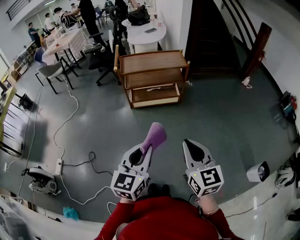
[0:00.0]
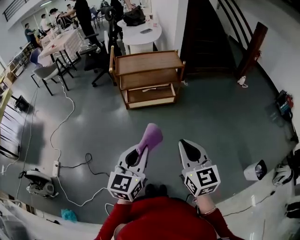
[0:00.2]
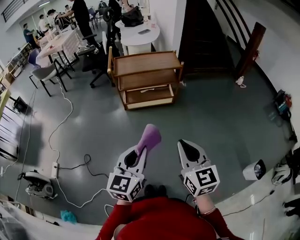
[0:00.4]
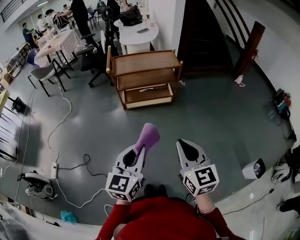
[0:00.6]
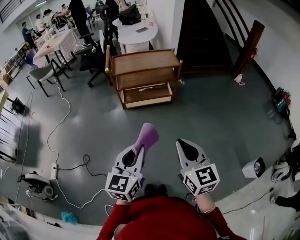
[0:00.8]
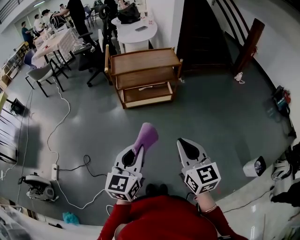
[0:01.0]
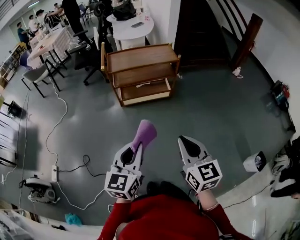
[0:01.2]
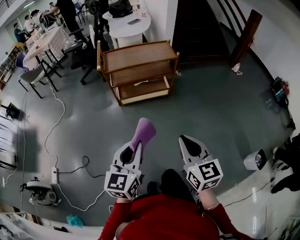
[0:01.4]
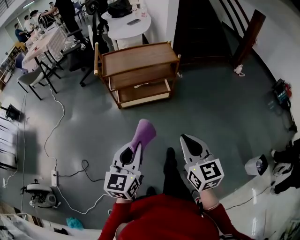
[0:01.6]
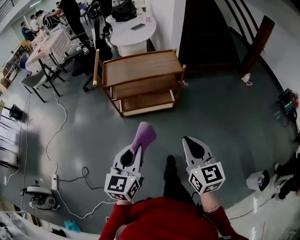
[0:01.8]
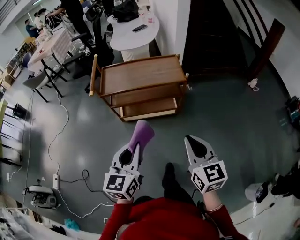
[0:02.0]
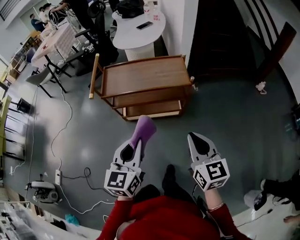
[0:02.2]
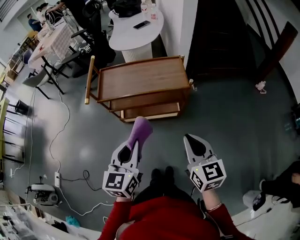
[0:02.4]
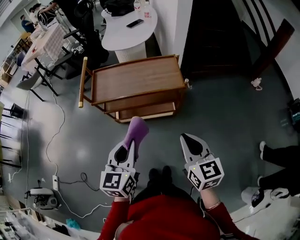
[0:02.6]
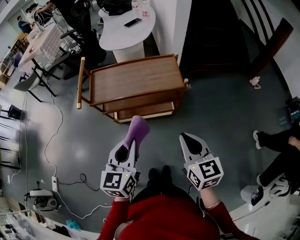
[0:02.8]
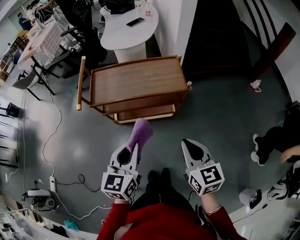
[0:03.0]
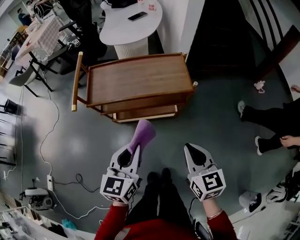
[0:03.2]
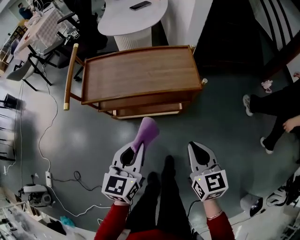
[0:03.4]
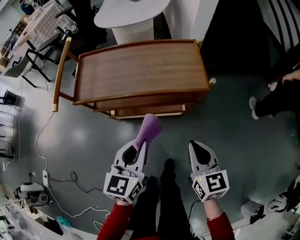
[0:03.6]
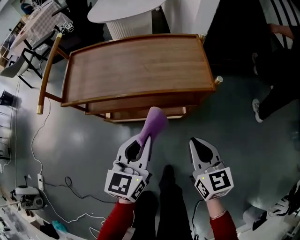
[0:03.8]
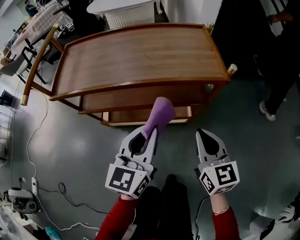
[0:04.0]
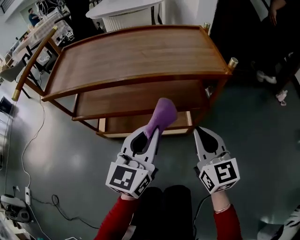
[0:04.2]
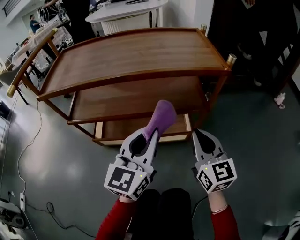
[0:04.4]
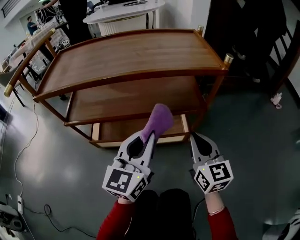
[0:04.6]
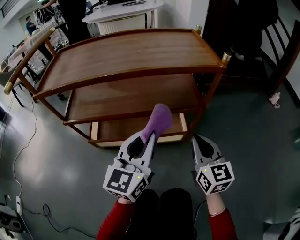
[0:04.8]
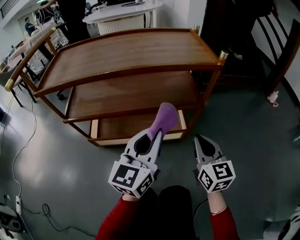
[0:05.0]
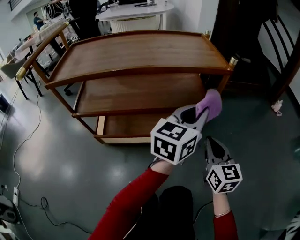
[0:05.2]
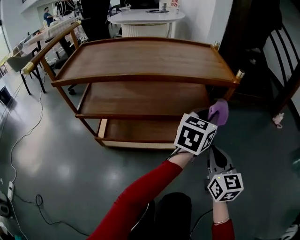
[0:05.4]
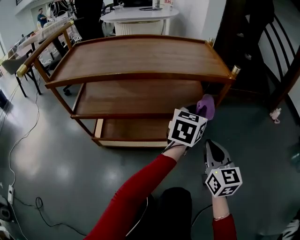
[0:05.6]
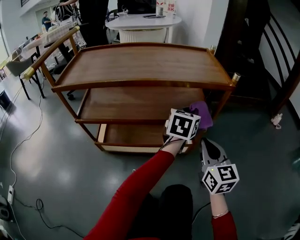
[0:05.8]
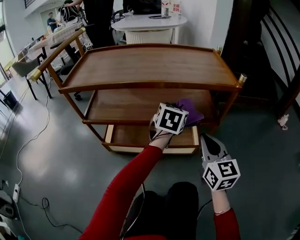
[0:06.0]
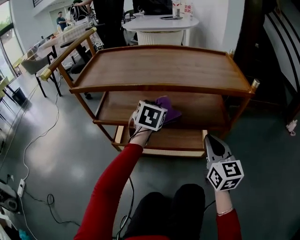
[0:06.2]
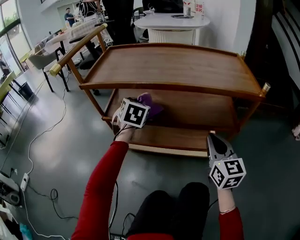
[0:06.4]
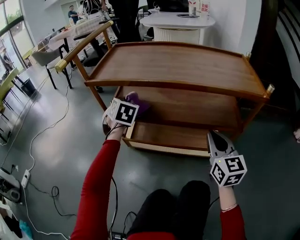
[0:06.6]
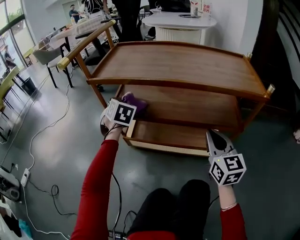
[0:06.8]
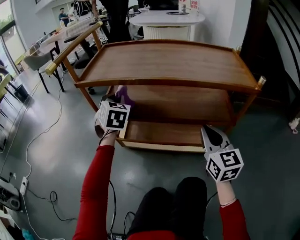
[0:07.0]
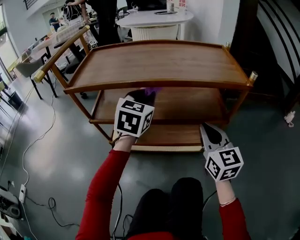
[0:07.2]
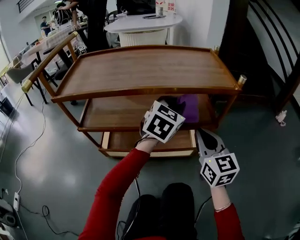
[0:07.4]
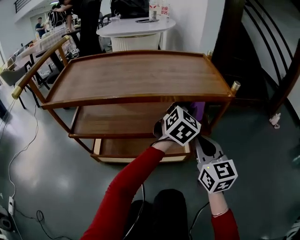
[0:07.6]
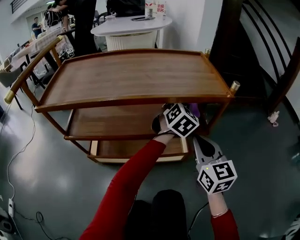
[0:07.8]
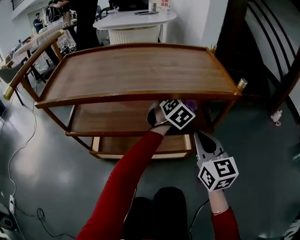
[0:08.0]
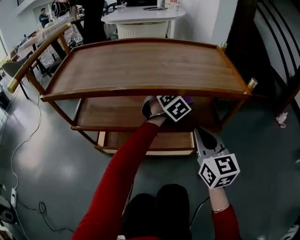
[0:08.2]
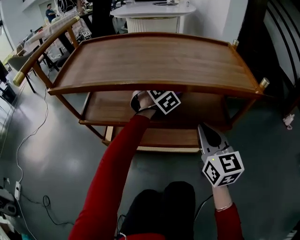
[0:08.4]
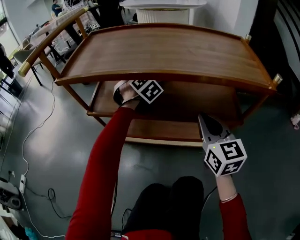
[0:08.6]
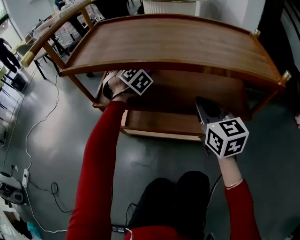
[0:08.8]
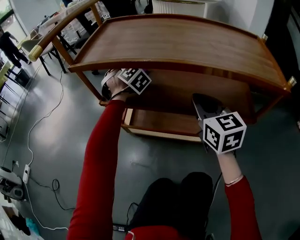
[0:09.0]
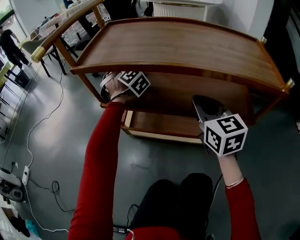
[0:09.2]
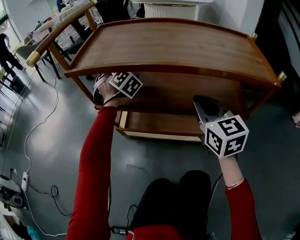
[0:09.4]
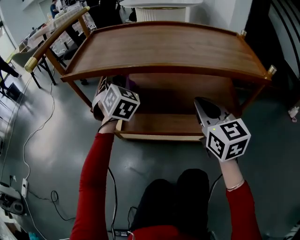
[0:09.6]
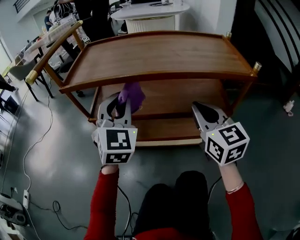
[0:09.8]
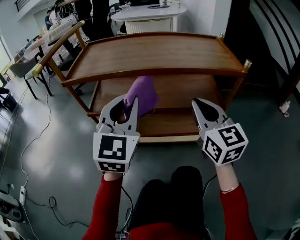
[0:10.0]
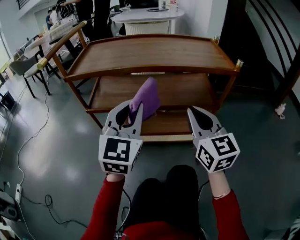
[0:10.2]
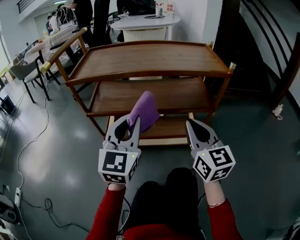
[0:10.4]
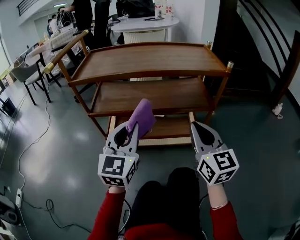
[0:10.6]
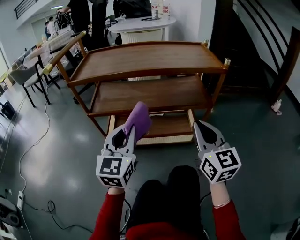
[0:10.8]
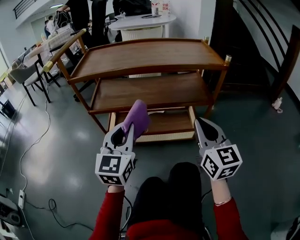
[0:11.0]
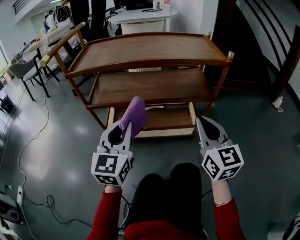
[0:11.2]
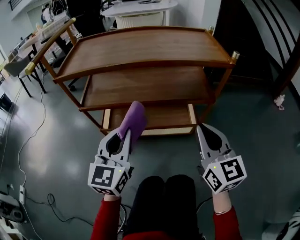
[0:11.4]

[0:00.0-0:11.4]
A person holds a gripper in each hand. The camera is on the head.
0:00.0 to 0:01.4: The left gripper travels forward by about 5 cm; the right gripper moves roughly 5 cm.
0:01.4 to 0:02.8: The grippers both shift forward by about 30 cm.
0:02.8 to 0:04.2: Both grippers move downward and forward, some 35 cm.
0:04.2 to 0:05.6: The left gripper moves forward and to the right, about 20 cm; the right gripper travels downward by roughly 5 cm.
0:05.6 to 0:07.2: The right gripper moves roughly 10 cm. The left gripper swivels approximately 30 degrees.
0:07.2 to 0:08.6: The left gripper moves roughly 20 cm, and turns by roughly 50 degrees, while the right gripper moves roughly 5 cm.
0:08.6 to 0:10.0: The left gripper changes place by some 30 cm, and tips its fingers upward by roughly 30 degrees, while the right gripper travels upward by roughly 10 cm.
0:10.0 to 0:11.4: The left gripper shifts roughly 10 cm downward and backward; the right gripper moves backward and to the right, roughly 10 cm.

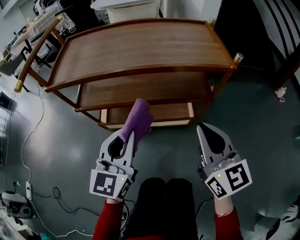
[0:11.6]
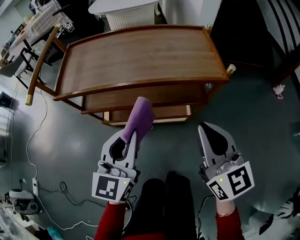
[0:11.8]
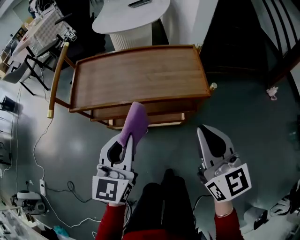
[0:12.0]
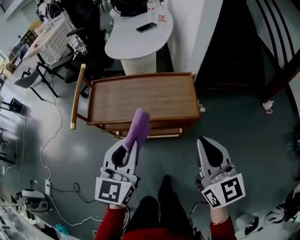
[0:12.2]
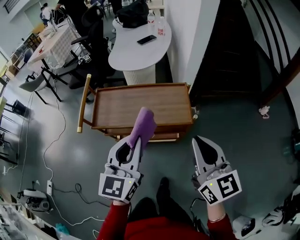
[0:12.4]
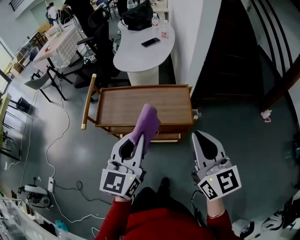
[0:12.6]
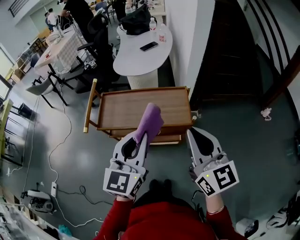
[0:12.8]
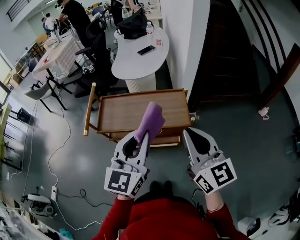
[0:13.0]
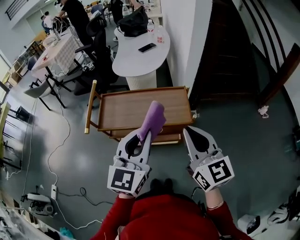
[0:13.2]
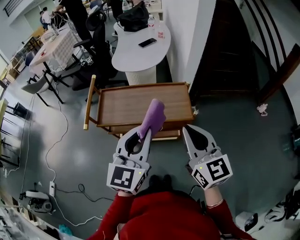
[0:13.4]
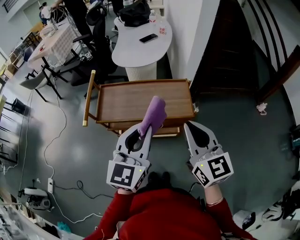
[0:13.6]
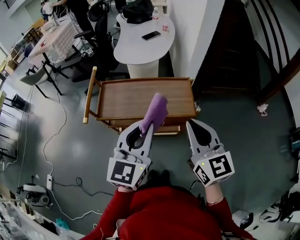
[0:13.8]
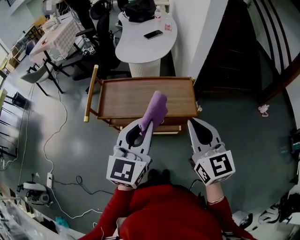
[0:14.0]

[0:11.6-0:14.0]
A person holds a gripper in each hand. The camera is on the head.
0:11.6 to 0:12.8: The two grippers go about 35 cm upward.
0:12.8 to 0:14.0: The grippers move only a little.

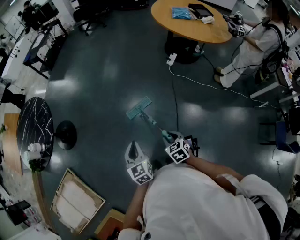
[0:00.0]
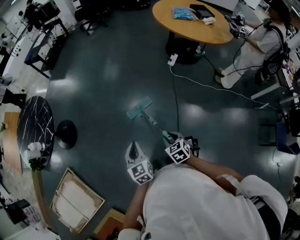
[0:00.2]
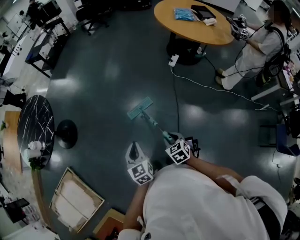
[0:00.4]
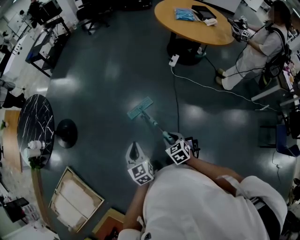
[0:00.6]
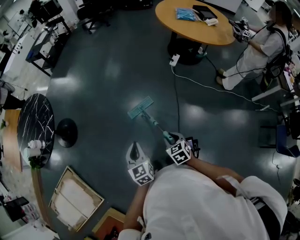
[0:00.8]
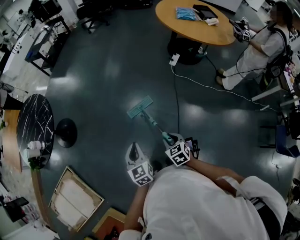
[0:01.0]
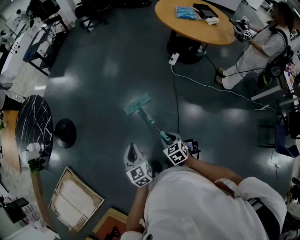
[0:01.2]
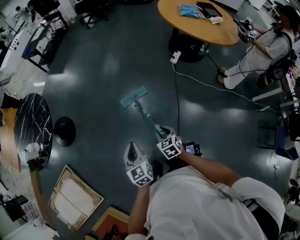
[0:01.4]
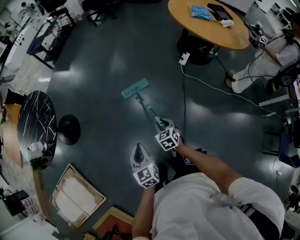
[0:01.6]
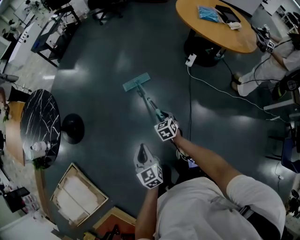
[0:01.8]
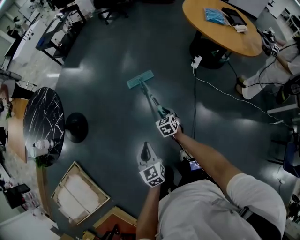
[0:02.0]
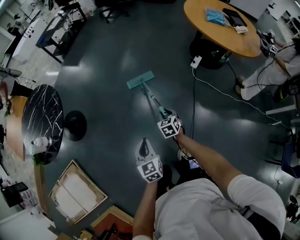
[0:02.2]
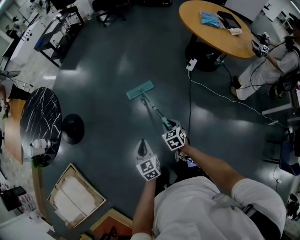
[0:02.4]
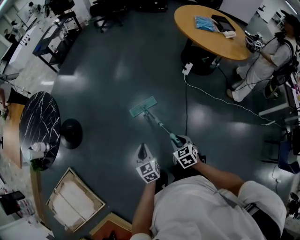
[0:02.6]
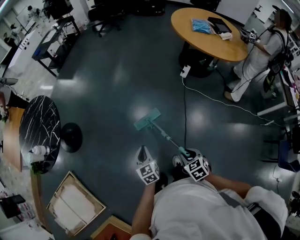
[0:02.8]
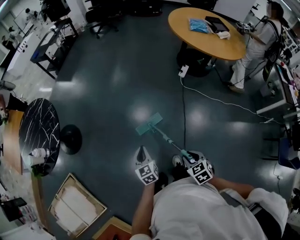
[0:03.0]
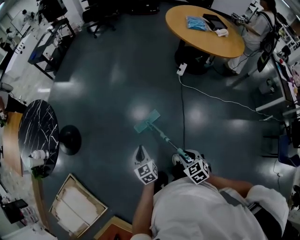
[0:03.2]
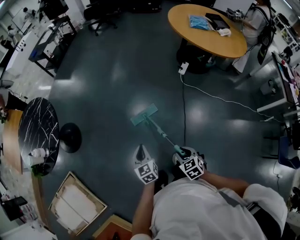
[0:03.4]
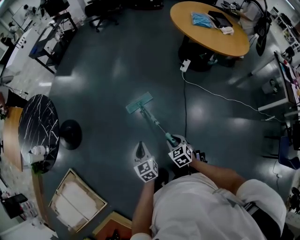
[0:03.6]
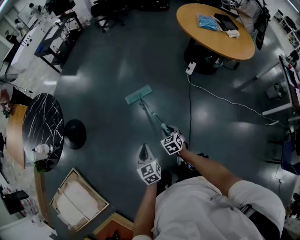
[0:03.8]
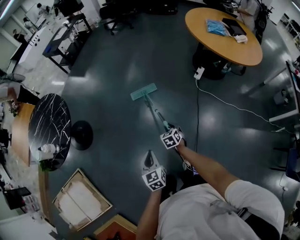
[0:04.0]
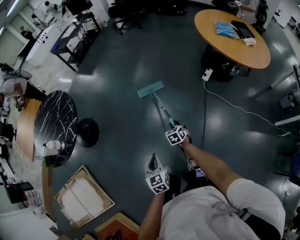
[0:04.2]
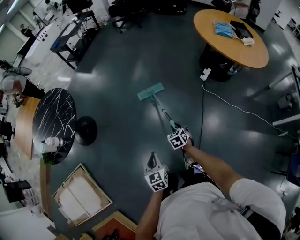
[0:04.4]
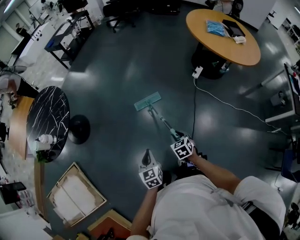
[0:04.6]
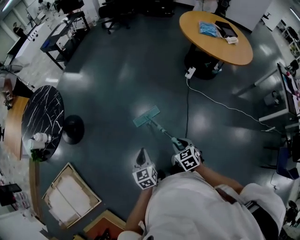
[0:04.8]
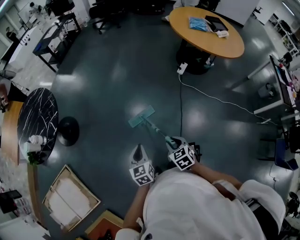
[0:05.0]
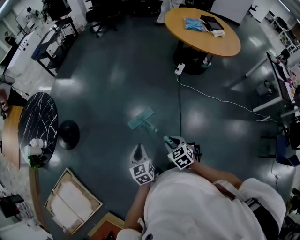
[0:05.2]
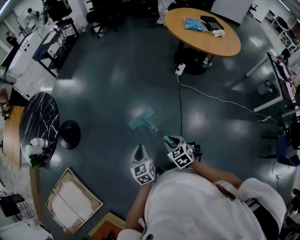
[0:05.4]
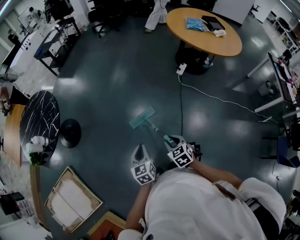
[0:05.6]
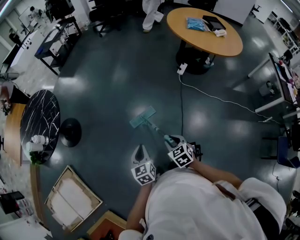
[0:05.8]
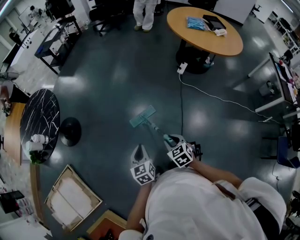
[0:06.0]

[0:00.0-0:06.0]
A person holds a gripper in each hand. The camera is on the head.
0:00.0 to 0:01.6: The right gripper goes approximately 15 cm forward. The left gripper moves forward, approximately 5 cm.
0:01.6 to 0:03.0: The right gripper moves backward and upward, some 20 cm; the left gripper changes place by approximately 5 cm.
0:03.0 to 0:04.4: The right gripper travels forward and downward by approximately 25 cm.
0:04.4 to 0:06.0: The right gripper travels backward and upward by some 25 cm, while the left gripper is displaced backward by about 5 cm.

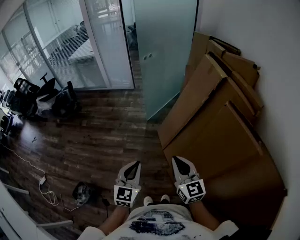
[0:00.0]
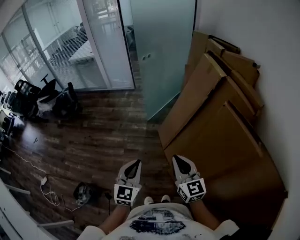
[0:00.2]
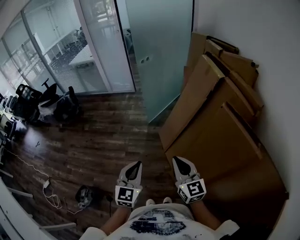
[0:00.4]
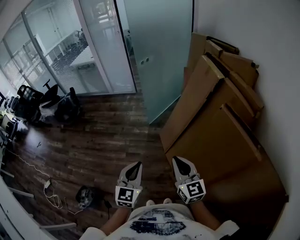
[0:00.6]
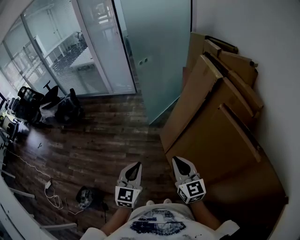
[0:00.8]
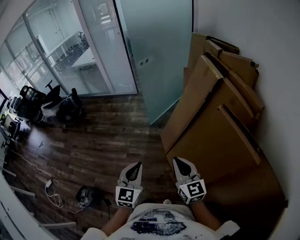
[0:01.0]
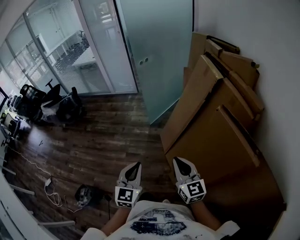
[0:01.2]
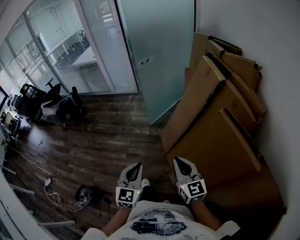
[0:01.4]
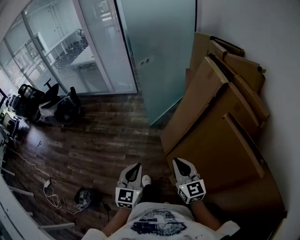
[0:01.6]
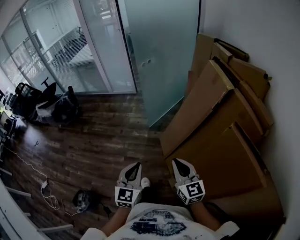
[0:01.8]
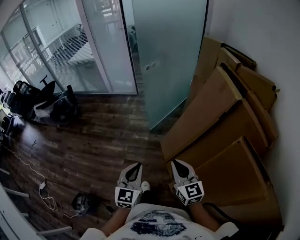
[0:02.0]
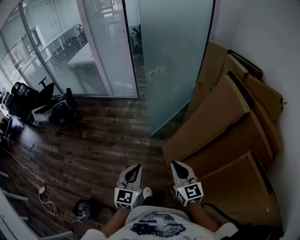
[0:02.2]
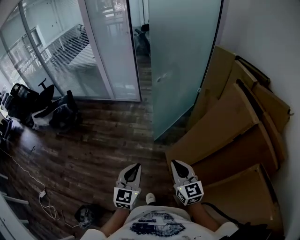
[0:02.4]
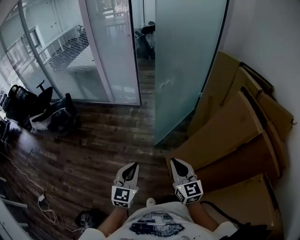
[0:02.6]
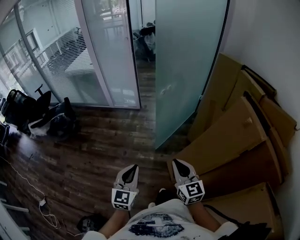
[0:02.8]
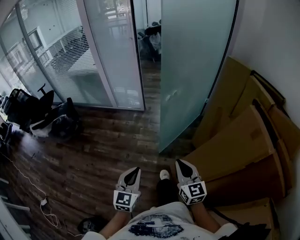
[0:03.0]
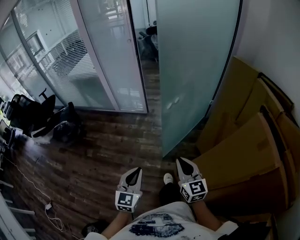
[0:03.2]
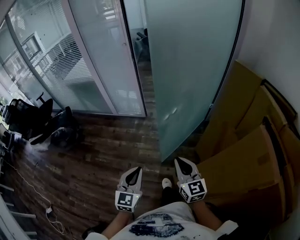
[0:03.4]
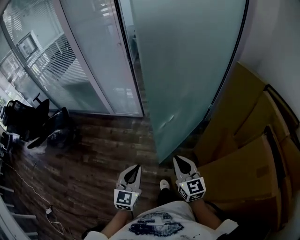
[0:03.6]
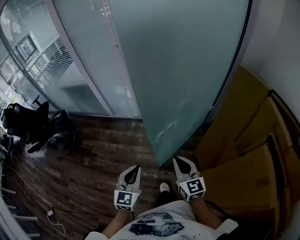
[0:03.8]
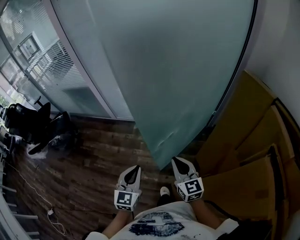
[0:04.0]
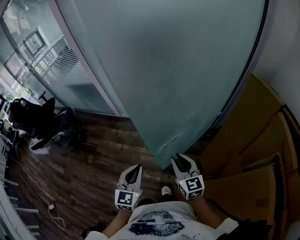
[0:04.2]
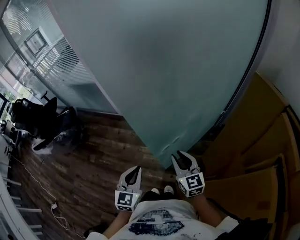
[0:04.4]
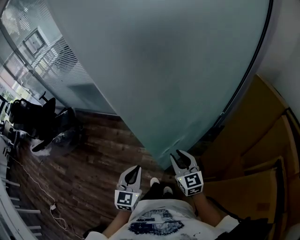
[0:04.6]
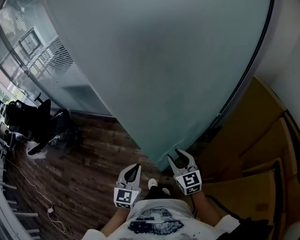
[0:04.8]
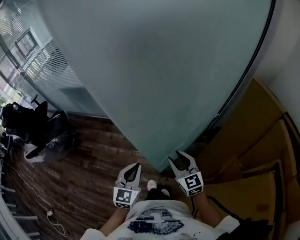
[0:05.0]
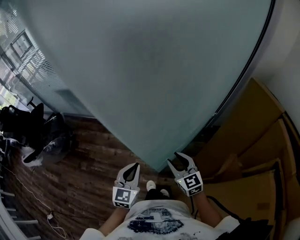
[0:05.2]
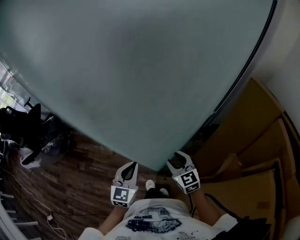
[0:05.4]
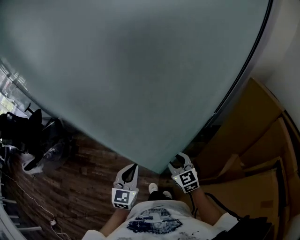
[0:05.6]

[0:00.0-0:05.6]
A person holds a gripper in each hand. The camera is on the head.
0:00.0 to 0:01.4: Both grippers move to the right, roughly 5 cm.
0:01.4 to 0:02.8: Both grippers move forward and to the left, about 40 cm.
0:02.8 to 0:04.2: Both grippers move forward, some 35 cm. The right gripper opens.
0:04.2 to 0:05.6: The two grippers go approximately 10 cm forward.
